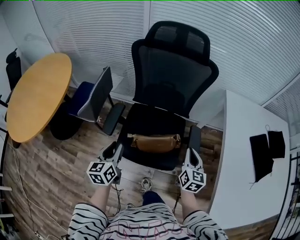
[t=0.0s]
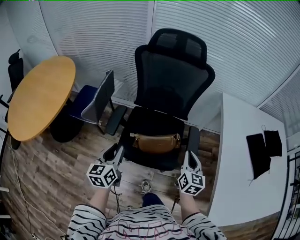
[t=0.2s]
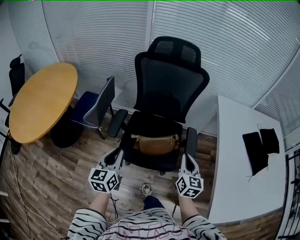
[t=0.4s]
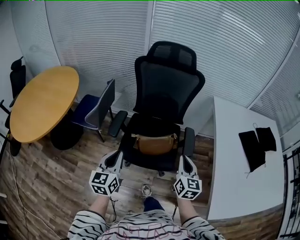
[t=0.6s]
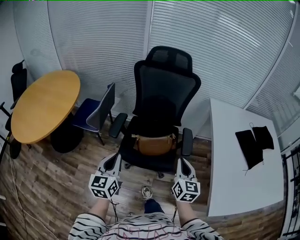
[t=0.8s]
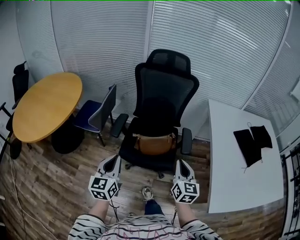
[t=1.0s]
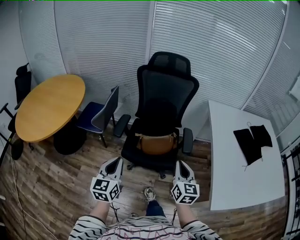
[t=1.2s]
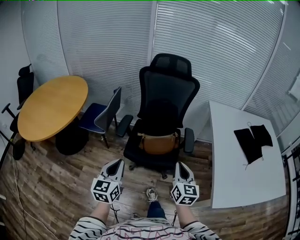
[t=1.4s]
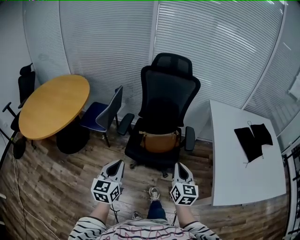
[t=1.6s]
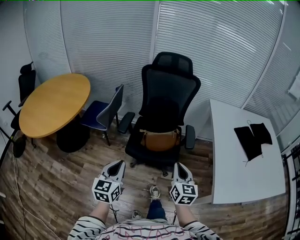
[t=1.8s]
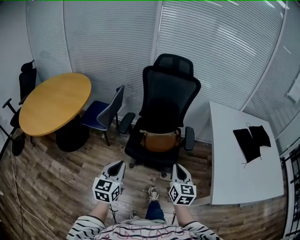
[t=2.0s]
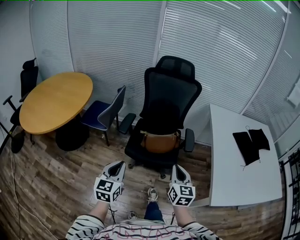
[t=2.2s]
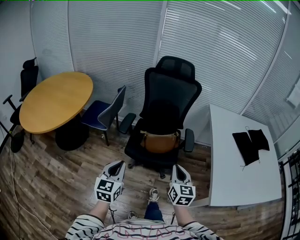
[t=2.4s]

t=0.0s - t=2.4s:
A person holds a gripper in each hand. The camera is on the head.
t=0.0s - t=1.2s: Both grippers move backward and upward, about 30 cm. The left gripper closes up.
t=1.2s - t=2.4s: Both grippers travel together backward, approximately 5 cm.

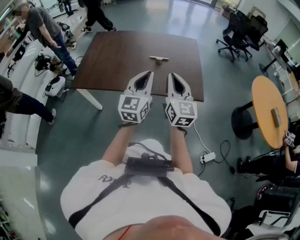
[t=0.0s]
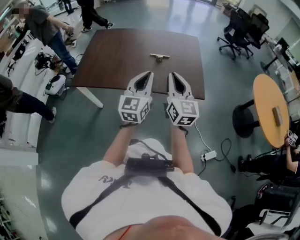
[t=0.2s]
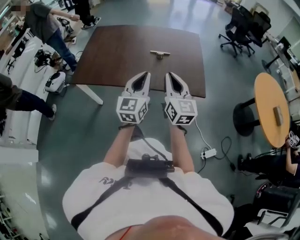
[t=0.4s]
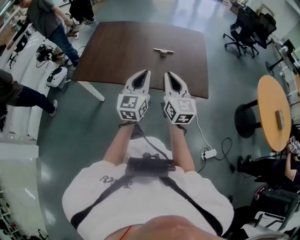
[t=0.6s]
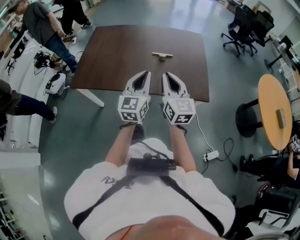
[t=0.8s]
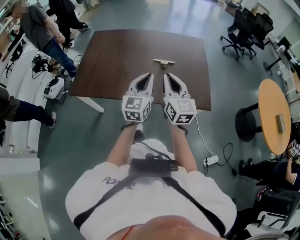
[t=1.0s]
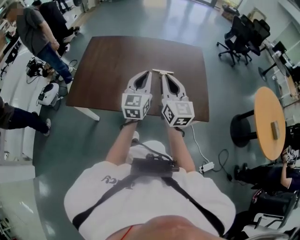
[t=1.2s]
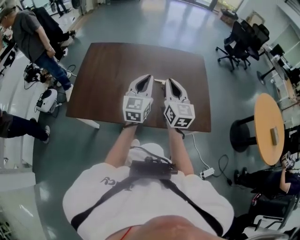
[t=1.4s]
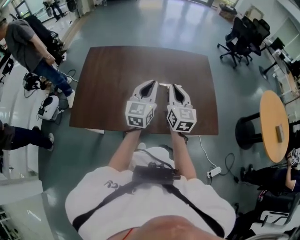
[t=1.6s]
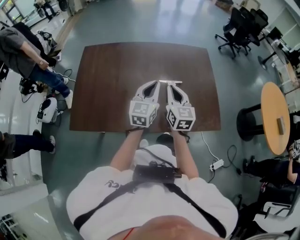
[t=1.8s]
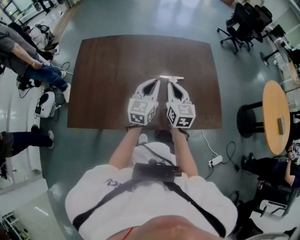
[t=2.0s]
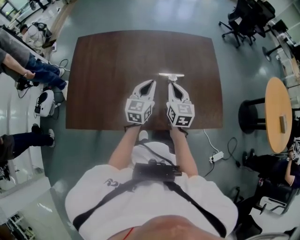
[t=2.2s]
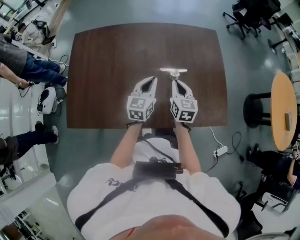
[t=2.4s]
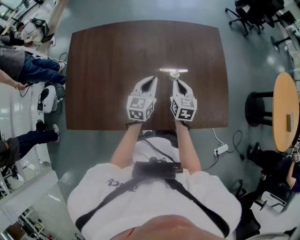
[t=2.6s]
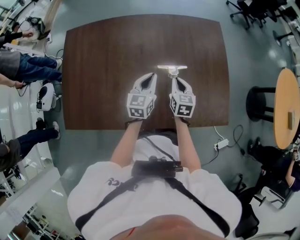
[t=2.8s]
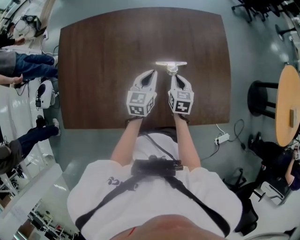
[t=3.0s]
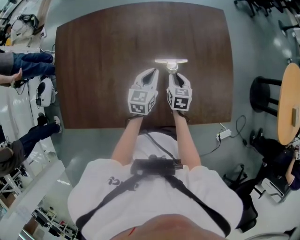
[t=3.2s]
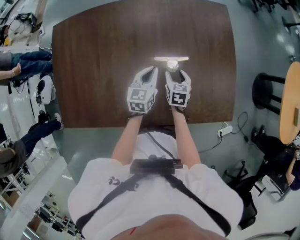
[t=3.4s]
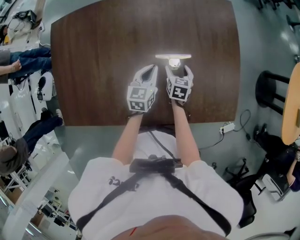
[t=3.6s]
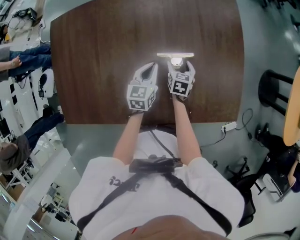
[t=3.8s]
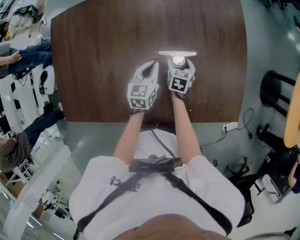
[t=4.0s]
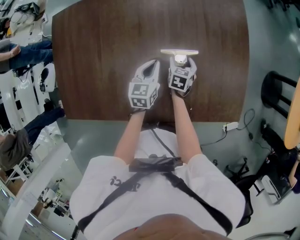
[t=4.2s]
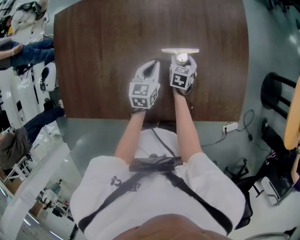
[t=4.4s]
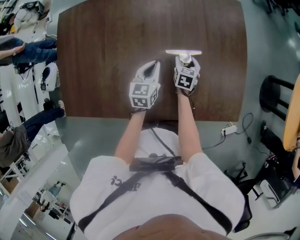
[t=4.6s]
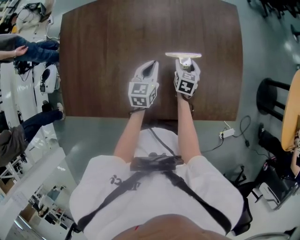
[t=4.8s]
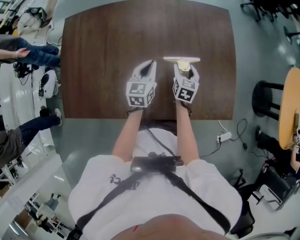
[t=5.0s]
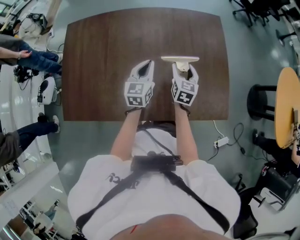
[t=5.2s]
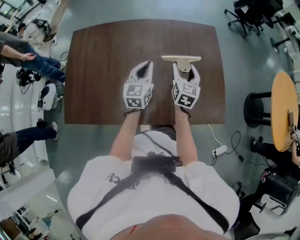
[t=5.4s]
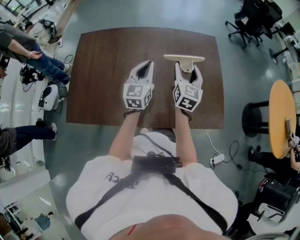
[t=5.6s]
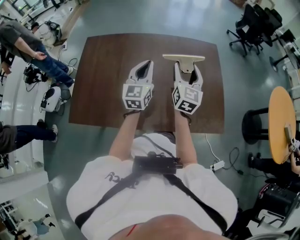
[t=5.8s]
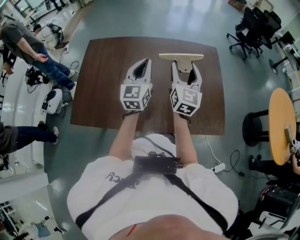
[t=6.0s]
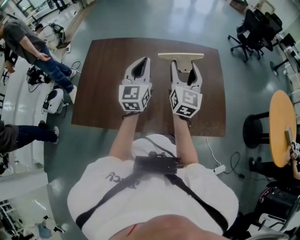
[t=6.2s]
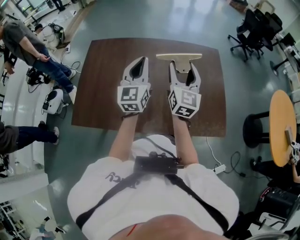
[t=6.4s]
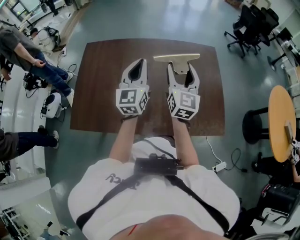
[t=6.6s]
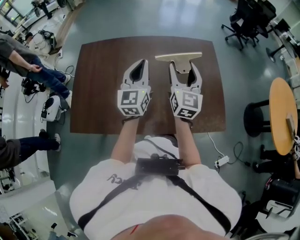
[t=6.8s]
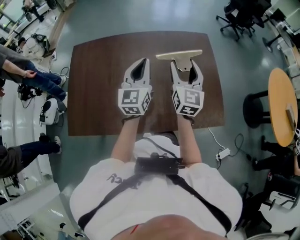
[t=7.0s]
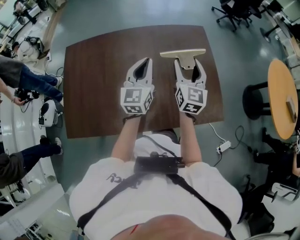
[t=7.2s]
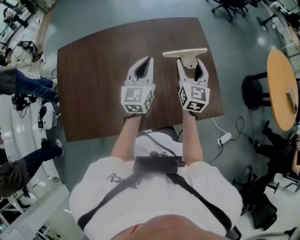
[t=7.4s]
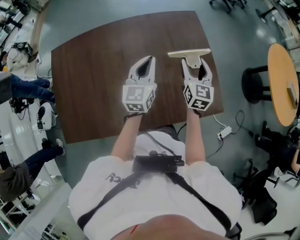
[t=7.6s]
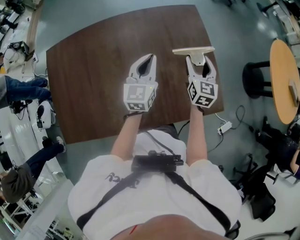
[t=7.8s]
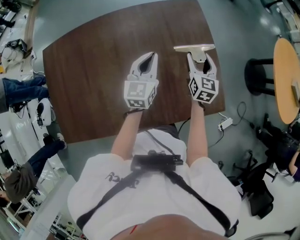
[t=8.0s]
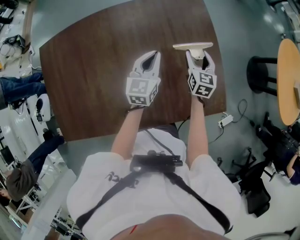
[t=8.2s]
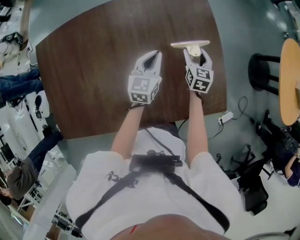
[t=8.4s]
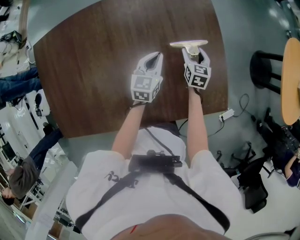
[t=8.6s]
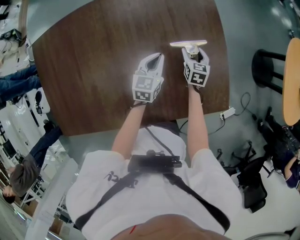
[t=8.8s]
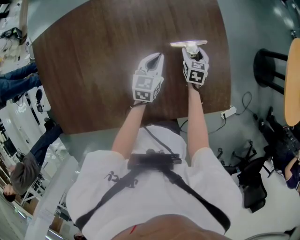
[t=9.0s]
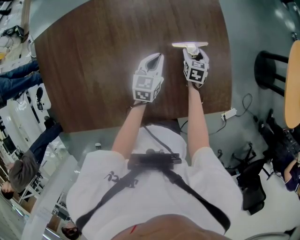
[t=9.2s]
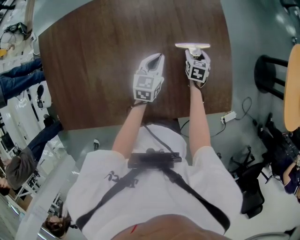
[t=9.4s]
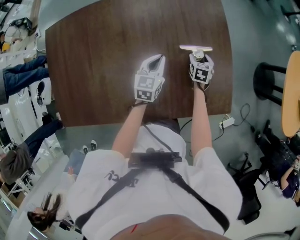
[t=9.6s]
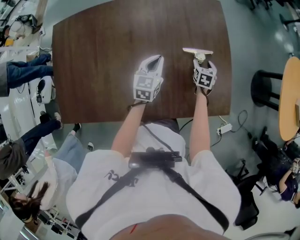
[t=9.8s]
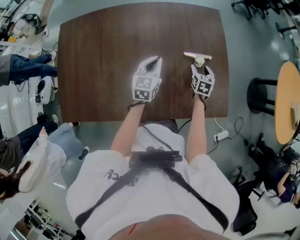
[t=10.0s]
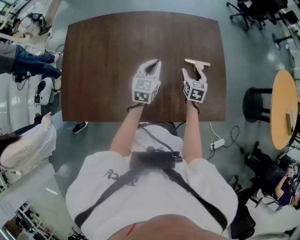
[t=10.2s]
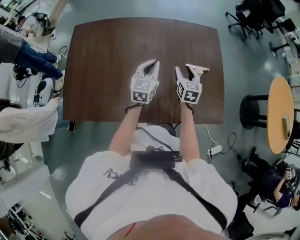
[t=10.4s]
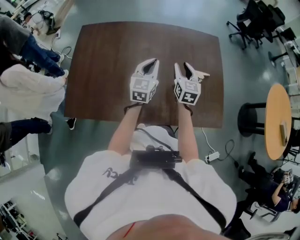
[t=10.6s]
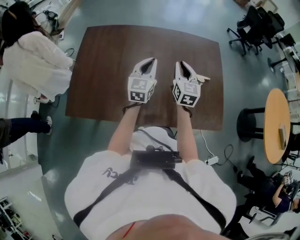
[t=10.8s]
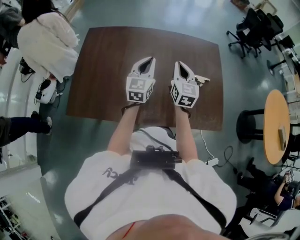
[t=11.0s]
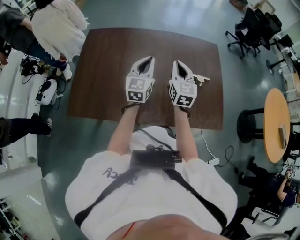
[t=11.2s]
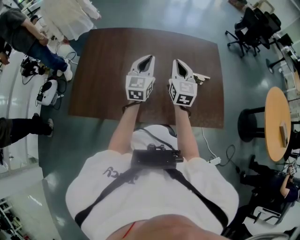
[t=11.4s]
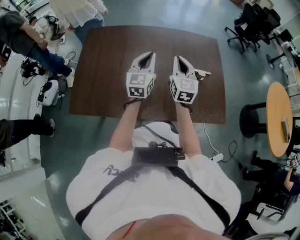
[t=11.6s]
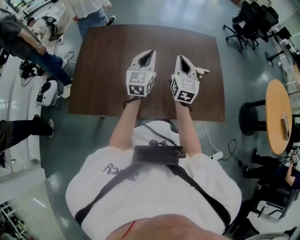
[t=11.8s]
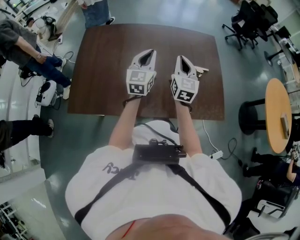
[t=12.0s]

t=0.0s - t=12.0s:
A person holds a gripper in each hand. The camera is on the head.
t=0.0s - t=1.6s: Both grippers travel together forward, roughly 30 cm.
t=1.6s - t=3.0s: Both grippers travel together downward and forward, approximately 30 cm. The right gripper points its fingers roughly 30 degrees further downward, while the left gripper rotates roughly 20 degrees.
t=3.0s - t=4.4s: The right gripper shifts roughly 15 cm downward and forward, and opens. The left gripper goes approximately 10 cm downward.
t=4.4s - t=6.0s: Both grippers move upward, roughly 40 cm. The right gripper points its fingers approximately 50 degrees further upward, while the left gripper points its fingers roughly 30 degrees further upward.
t=6.0s - t=7.6s: The right gripper shifts approximately 20 cm to the right, downward and forward; the left gripper travels to the right, forward and downward by approximately 20 cm.
t=7.6s - t=9.0s: Both grippers travel together downward, approximately 25 cm. The left gripper swivels about 20 degrees; the right gripper points its fingers approximately 30 degrees further downward.
t=9.0s - t=10.4s: The left gripper shifts about 25 cm upward, backward and to the left, and swivels about 20 degrees, while the right gripper is displaced upward, to the left and backward by roughly 30 cm, and swivels about 20 degrees.
t=10.4s - t=12.0s: Both grippers move upward, backward and to the left, about 15 cm. The right gripper swivels roughly 20 degrees, and closes.

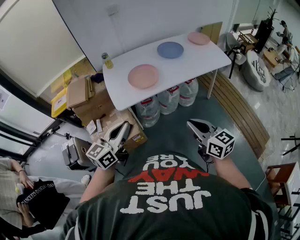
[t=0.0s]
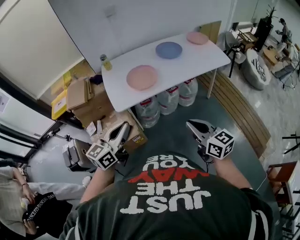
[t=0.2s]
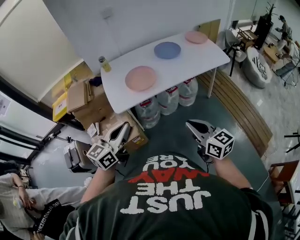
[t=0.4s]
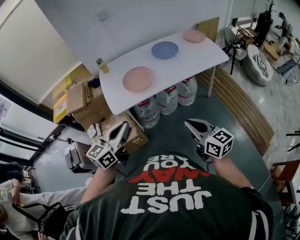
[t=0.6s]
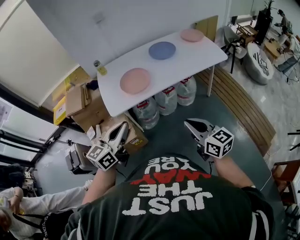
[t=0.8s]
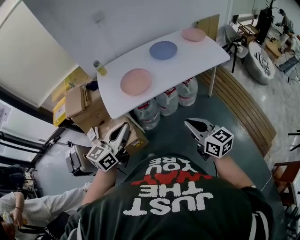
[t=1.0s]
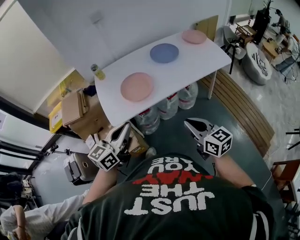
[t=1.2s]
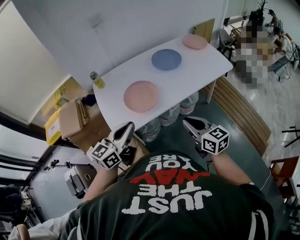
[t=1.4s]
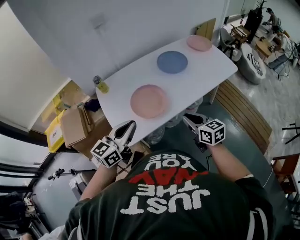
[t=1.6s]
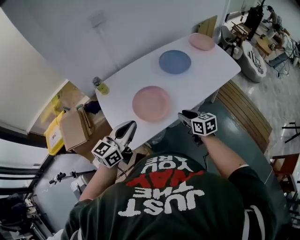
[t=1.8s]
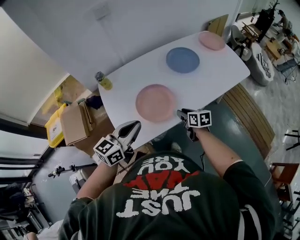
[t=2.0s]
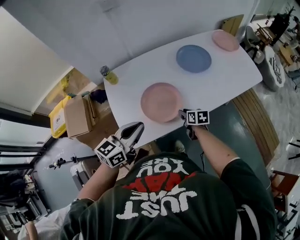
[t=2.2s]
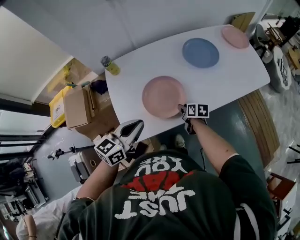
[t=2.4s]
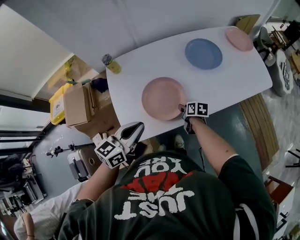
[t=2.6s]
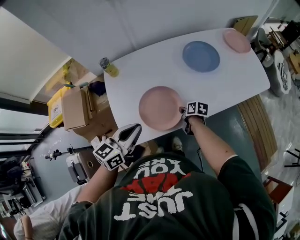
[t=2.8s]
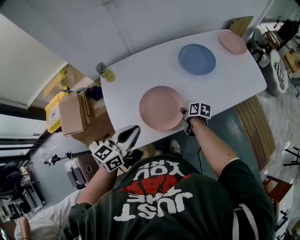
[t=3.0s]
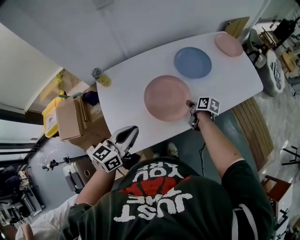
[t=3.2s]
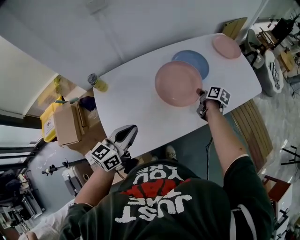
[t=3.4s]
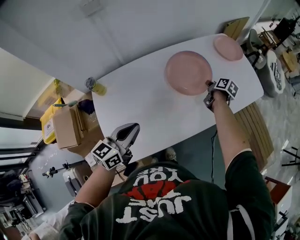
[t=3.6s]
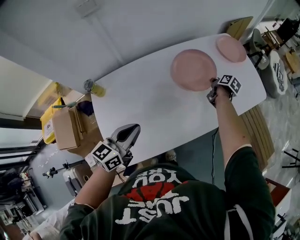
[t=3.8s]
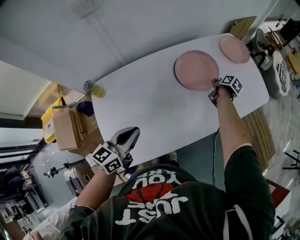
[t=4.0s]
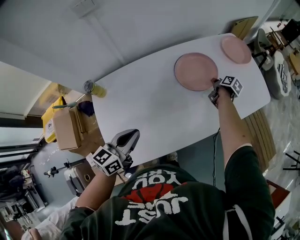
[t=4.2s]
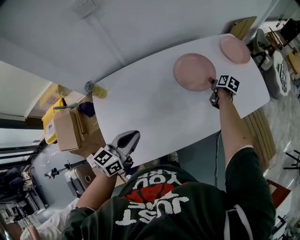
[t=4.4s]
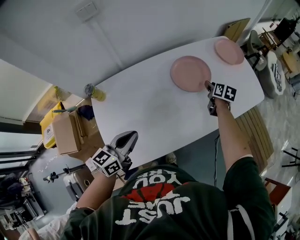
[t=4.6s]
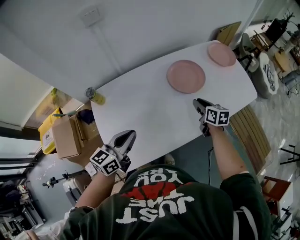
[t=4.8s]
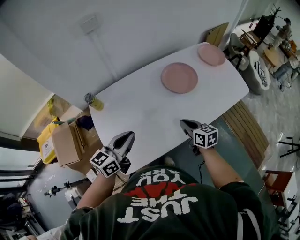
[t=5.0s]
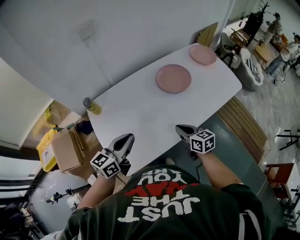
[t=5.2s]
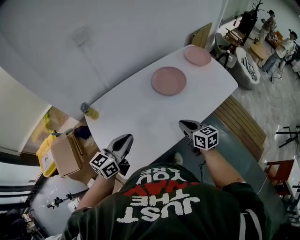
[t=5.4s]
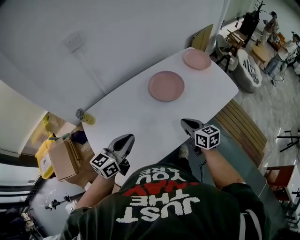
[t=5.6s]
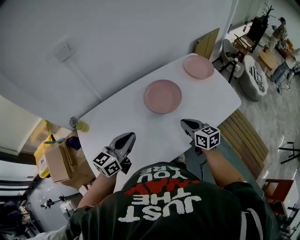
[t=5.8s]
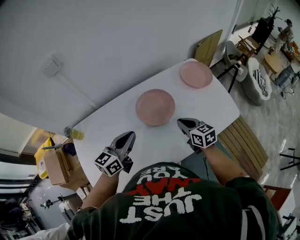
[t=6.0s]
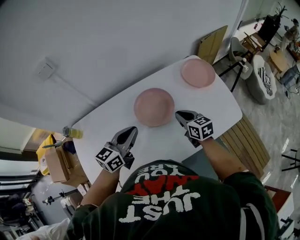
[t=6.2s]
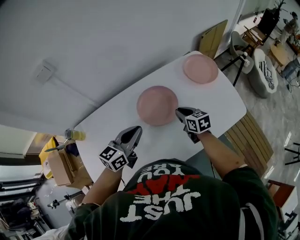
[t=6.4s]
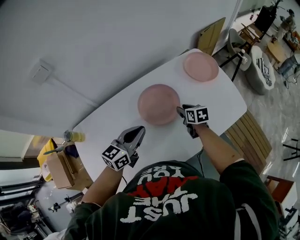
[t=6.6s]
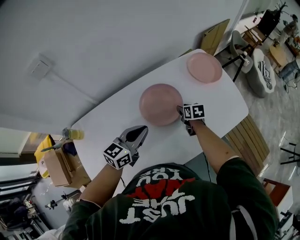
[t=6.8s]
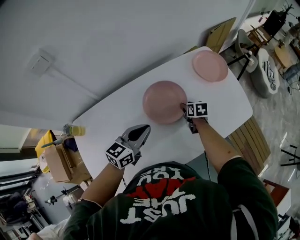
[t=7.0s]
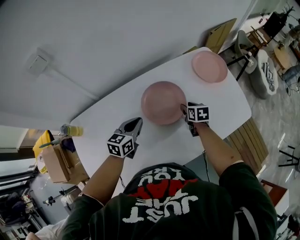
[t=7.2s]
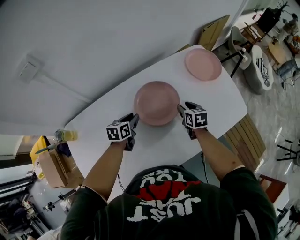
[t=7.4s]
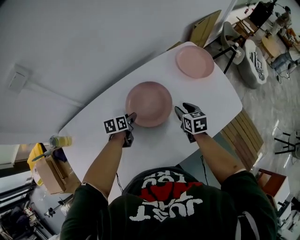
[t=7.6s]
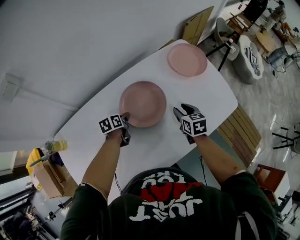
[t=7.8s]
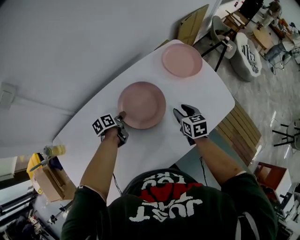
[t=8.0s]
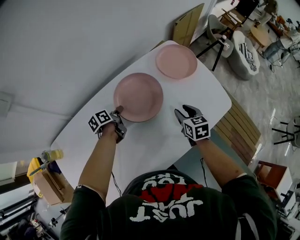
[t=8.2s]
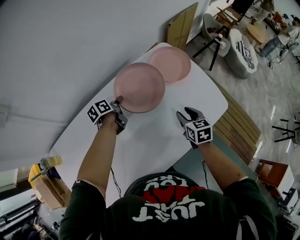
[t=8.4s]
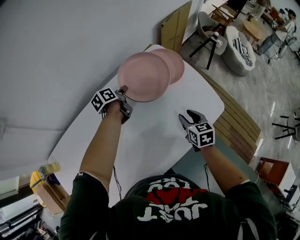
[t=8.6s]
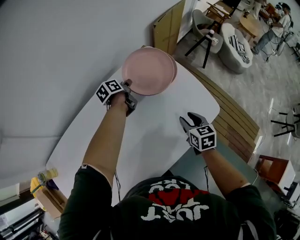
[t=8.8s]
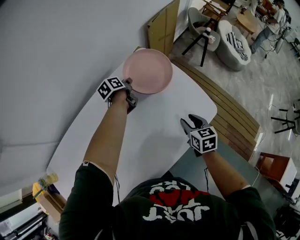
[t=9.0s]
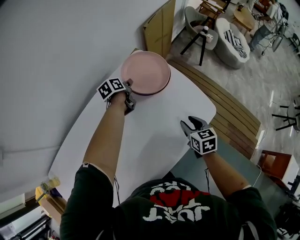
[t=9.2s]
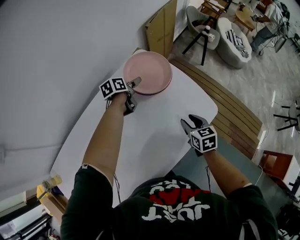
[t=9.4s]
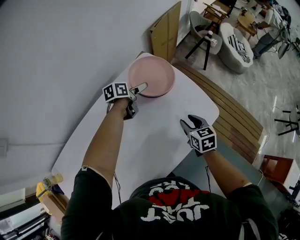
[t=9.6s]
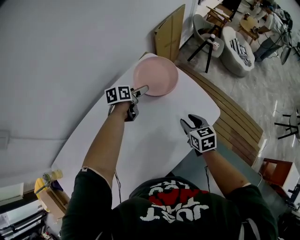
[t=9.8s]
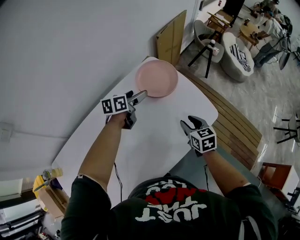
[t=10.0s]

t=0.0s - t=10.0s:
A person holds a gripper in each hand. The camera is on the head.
t=0.0s - t=1.4s: Both grippers travel together forward, about 20 cm.
t=1.4s - t=2.8s: The right gripper is displaced downward and forward by approximately 40 cm, angles its fingers downward, by roughly 30 degrees, and opens, then closes once more. Meanwhile the left gripper shifts roughly 15 cm forward and downward.
t=2.8s - t=4.2s: The left gripper goes roughly 15 cm forward. The right gripper shifts some 35 cm forward and to the right, and turns by about 30 degrees.
t=4.2s - t=5.8s: The left gripper heads to the right and forward, covering approximately 10 cm; the right gripper travels backward and upward by about 25 cm, twists approximately 50 degrees counterclockwise, seen from behind, and opens, then closes again.
t=5.8s - t=7.2s: Both grippers move forward and downward, approximately 25 cm. The left gripper swivels some 20 degrees. Meanwhile the right gripper changes its angle by roughly 30 degrees, and opens its fingers.
t=7.2s - t=8.6s: The left gripper heads forward and to the right, covering approximately 30 cm, and rotates around the line of its fingers by some 40 degrees, counterclockwise from behind. The right gripper is displaced to the right by about 20 cm.
t=8.6s - t=10.0s: The left gripper goes about 15 cm to the right and upward, turns by roughly 40 degrees, and opens its fingers.
